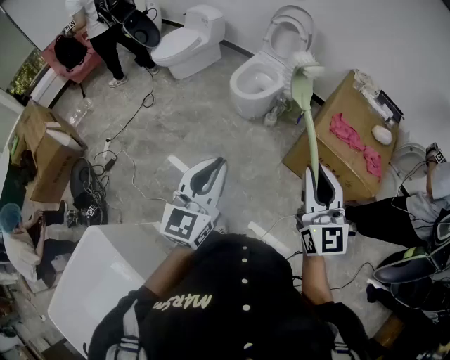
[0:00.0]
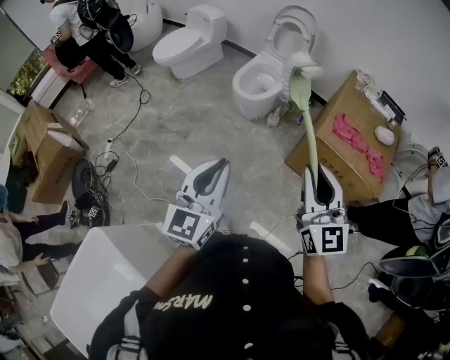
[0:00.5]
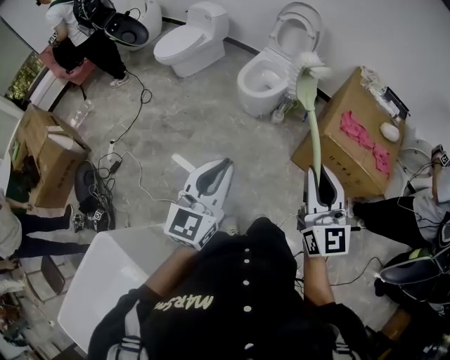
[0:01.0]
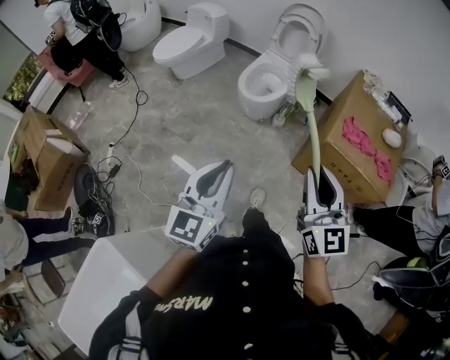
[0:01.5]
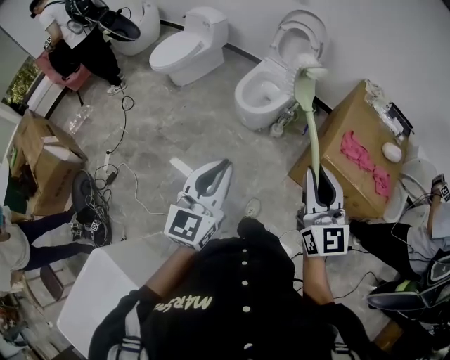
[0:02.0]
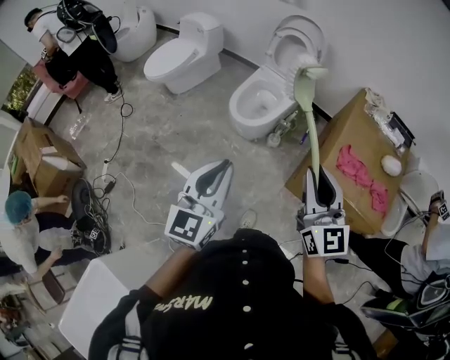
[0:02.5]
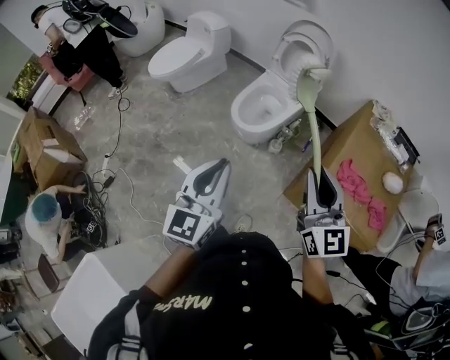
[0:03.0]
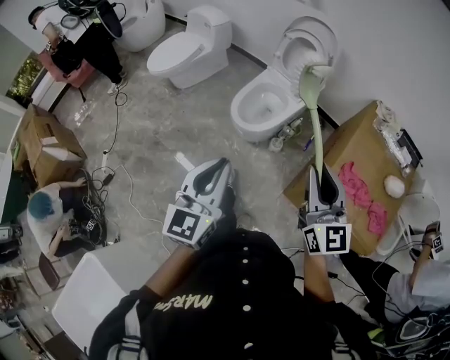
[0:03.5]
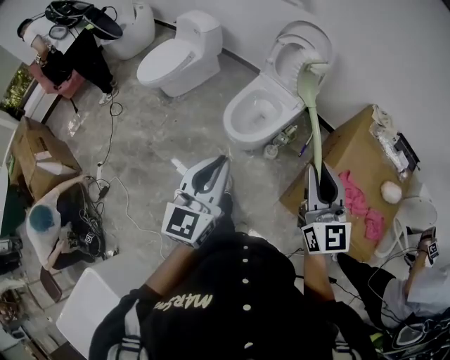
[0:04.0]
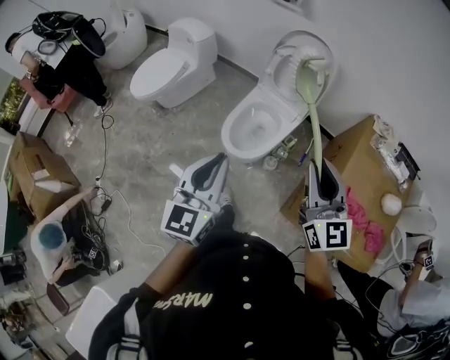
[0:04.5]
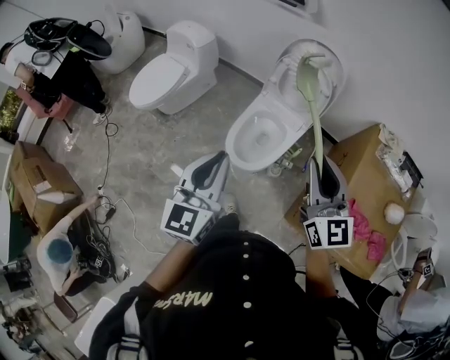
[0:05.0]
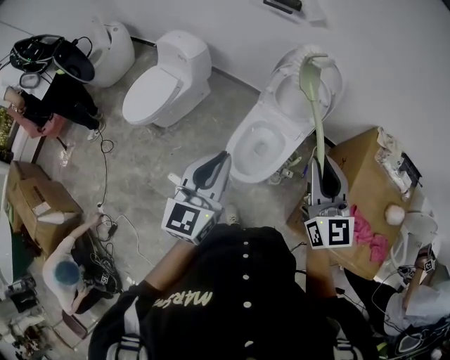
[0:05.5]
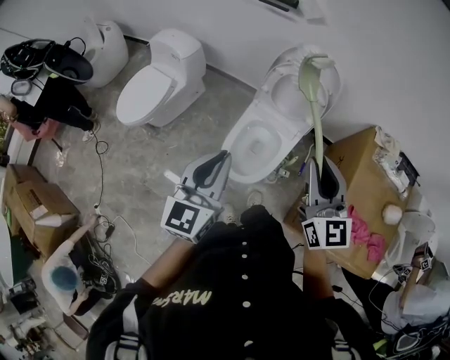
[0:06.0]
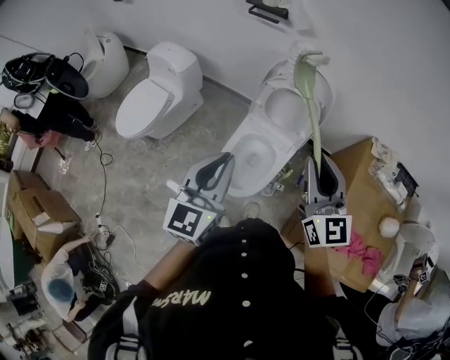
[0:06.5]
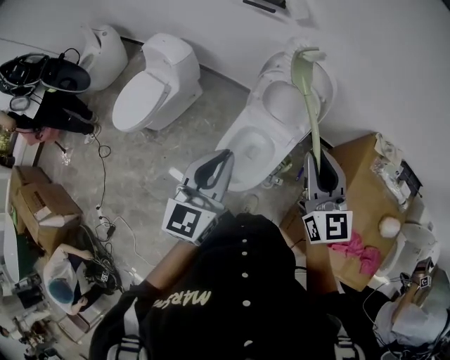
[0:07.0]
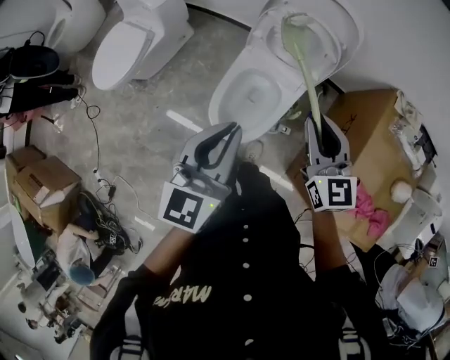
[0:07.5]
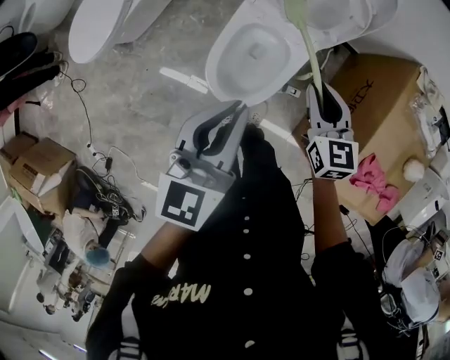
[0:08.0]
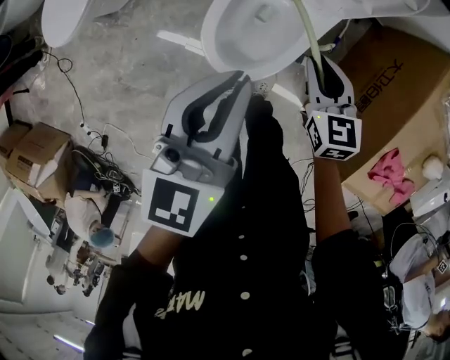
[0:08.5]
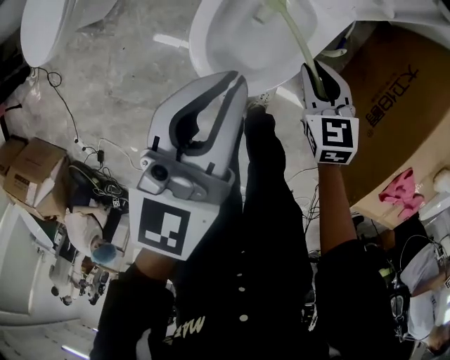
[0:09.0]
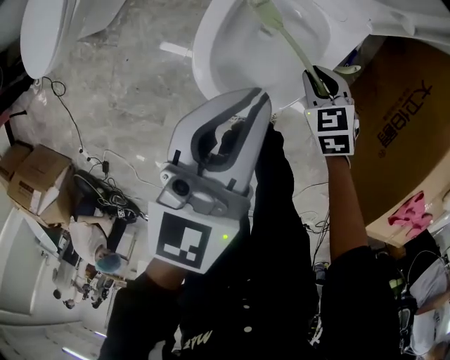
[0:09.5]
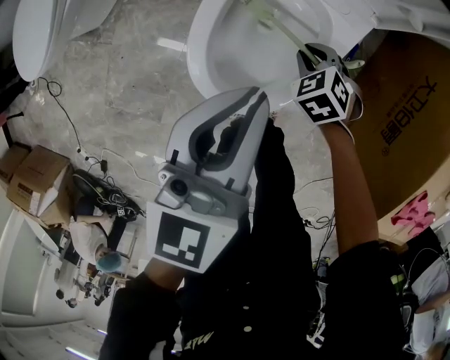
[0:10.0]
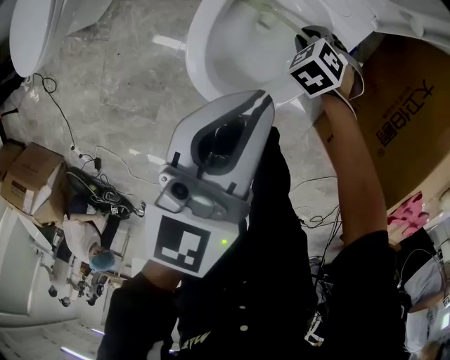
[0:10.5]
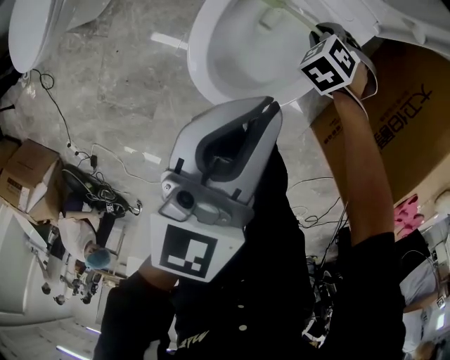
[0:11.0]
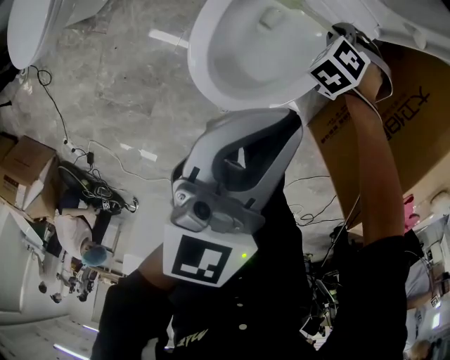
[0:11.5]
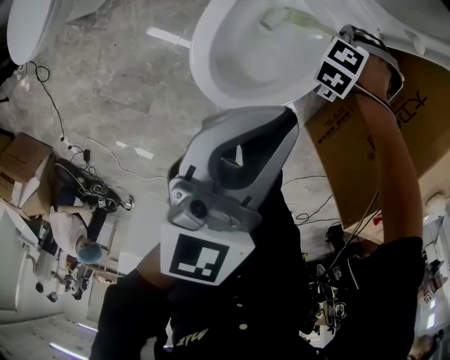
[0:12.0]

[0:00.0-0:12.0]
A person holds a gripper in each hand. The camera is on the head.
0:00.0 to 0:02.0: Both grippers travel together forward, some 15 cm.
0:02.0 to 0:04.0: The two grippers go some 25 cm forward.
0:04.0 to 0:06.0: The two grippers go some 30 cm forward.
0:06.0 to 0:08.0: The left gripper goes roughly 20 cm downward, forward and to the right; the right gripper goes roughly 35 cm downward and forward, and changes its angle by some 30 degrees.
0:08.0 to 0:10.0: The right gripper goes about 40 cm downward, and tips its fingers downward by approximately 40 degrees; the left gripper heads downward, covering some 30 cm.
0:10.0 to 0:12.0: The right gripper shifts by roughly 10 cm, and rolls counterclockwise, seen from behind, by roughly 40 degrees.

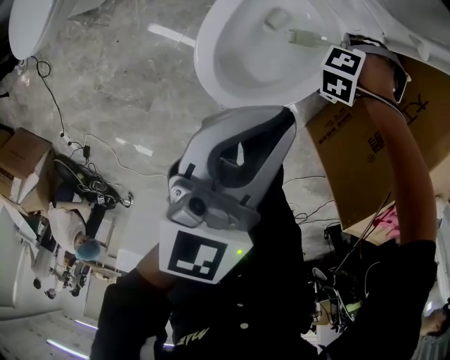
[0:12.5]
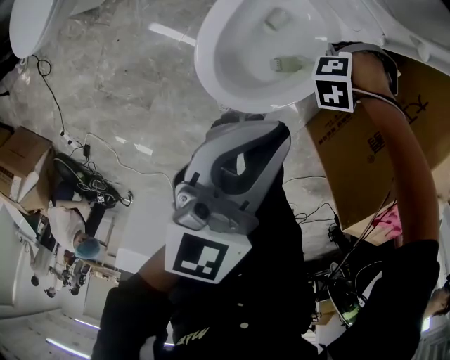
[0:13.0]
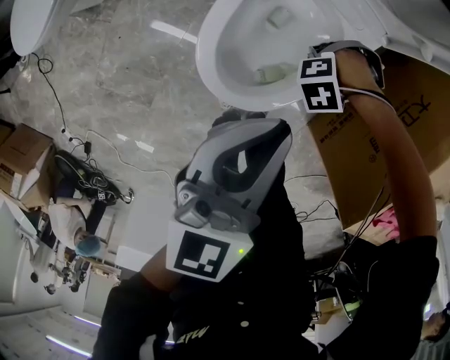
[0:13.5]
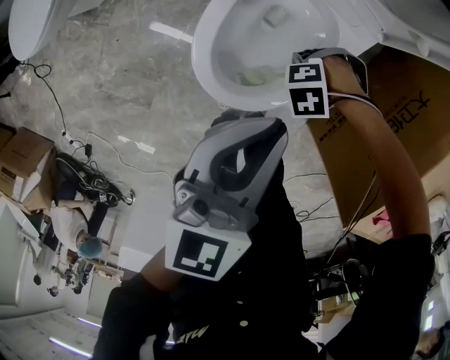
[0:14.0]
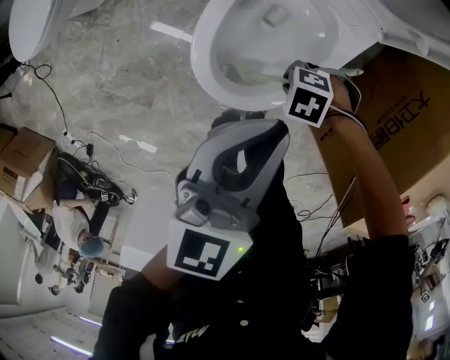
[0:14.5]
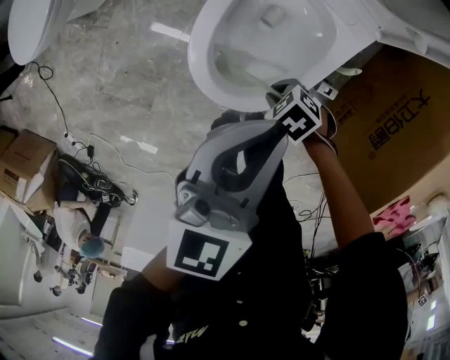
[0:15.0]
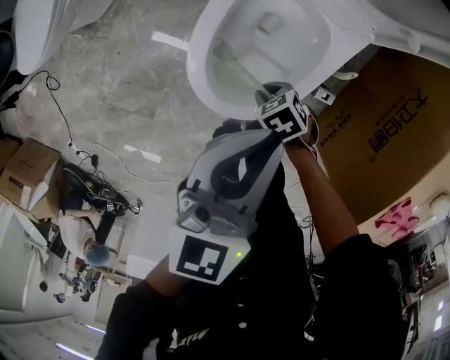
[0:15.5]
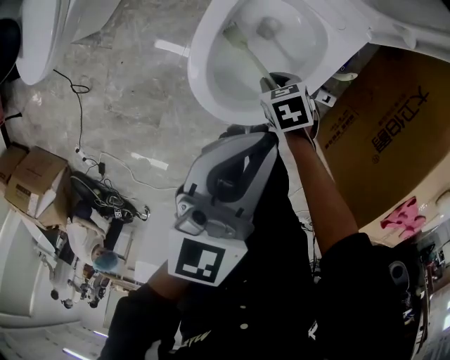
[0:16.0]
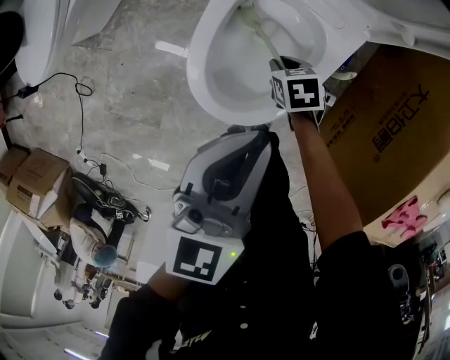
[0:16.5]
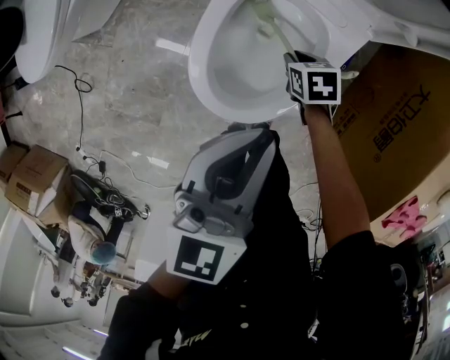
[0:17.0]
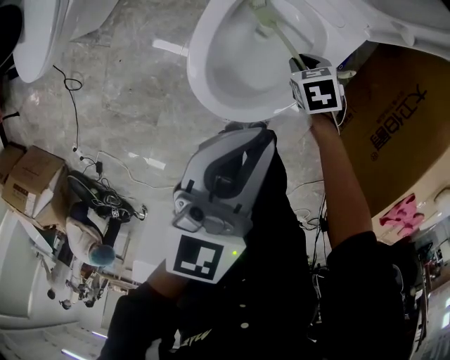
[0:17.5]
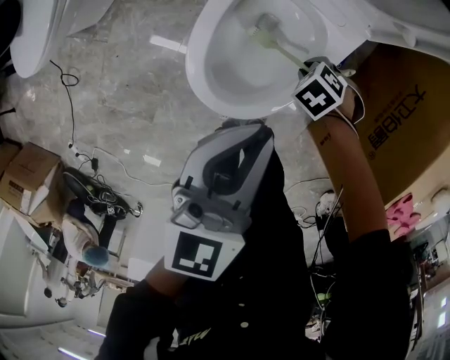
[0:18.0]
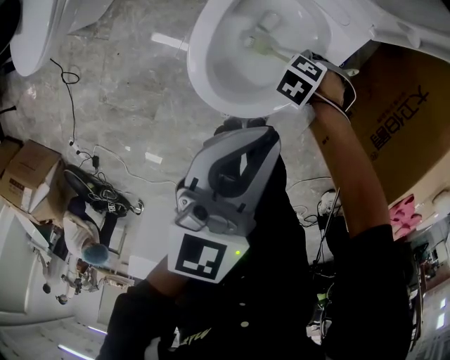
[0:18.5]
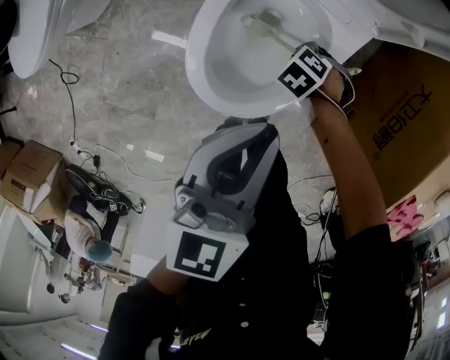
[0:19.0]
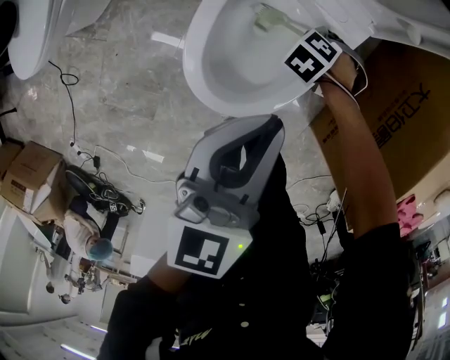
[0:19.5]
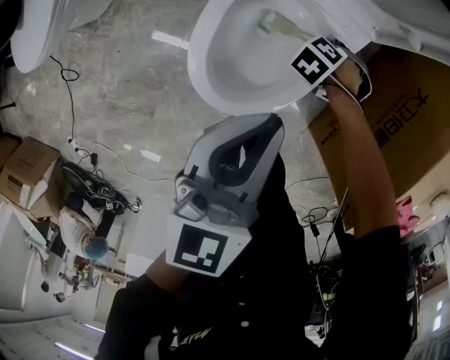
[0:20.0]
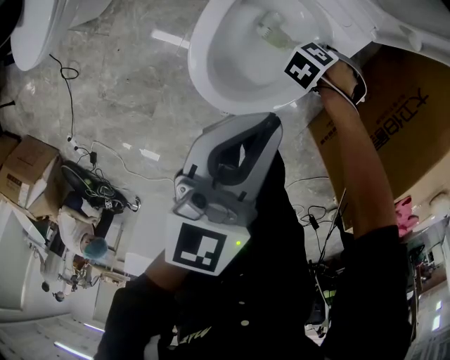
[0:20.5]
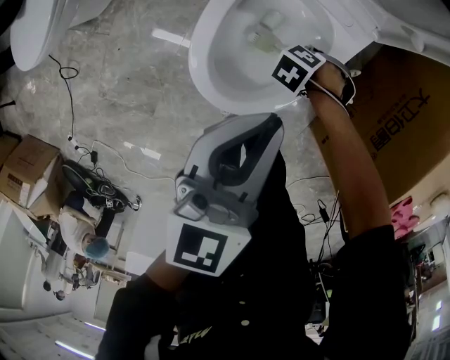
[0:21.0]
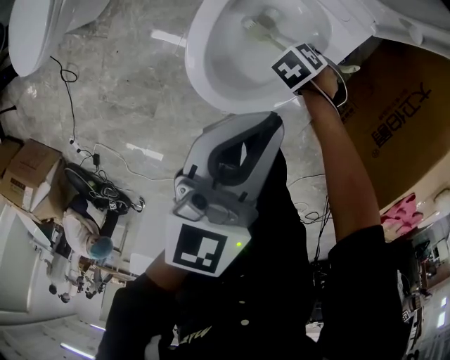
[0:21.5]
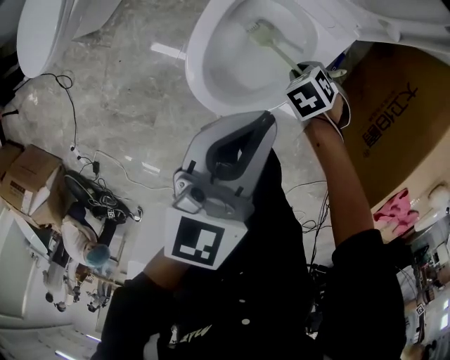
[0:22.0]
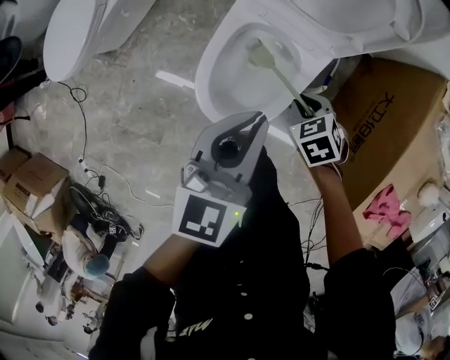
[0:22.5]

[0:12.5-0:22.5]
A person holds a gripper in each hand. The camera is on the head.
0:12.5 to 0:14.5: The right gripper shifts by roughly 20 cm, and turns by approximately 40 degrees.
0:14.5 to 0:16.5: The right gripper ends up approximately 10 cm from where it was, and rotates around the line of its fingers by roughly 60 degrees, clockwise from behind.
0:16.5 to 0:18.5: The right gripper changes place by approximately 5 cm, and twists some 50 degrees counterclockwise, seen from behind.
0:20.5 to 0:22.5: The left gripper travels upward by approximately 10 cm. Meanwhile the right gripper is displaced upward by about 20 cm, and swivels some 40 degrees.

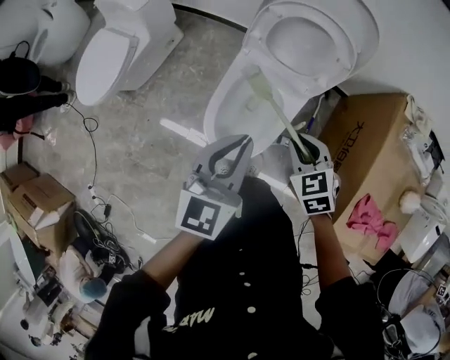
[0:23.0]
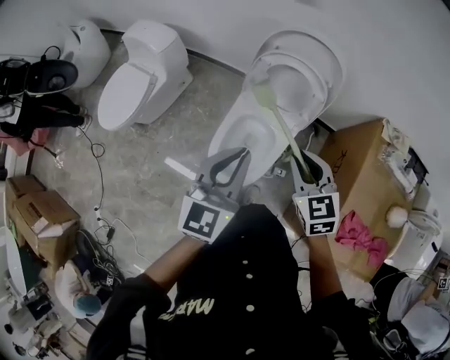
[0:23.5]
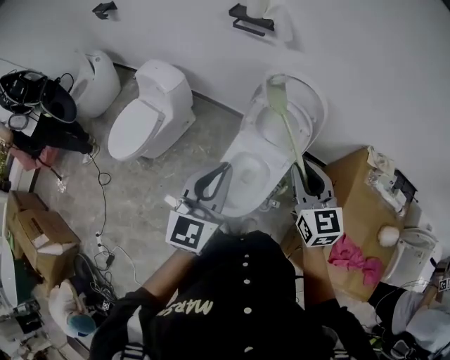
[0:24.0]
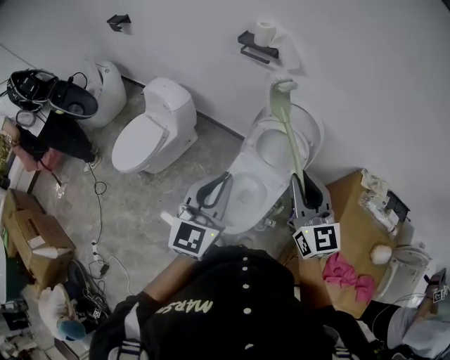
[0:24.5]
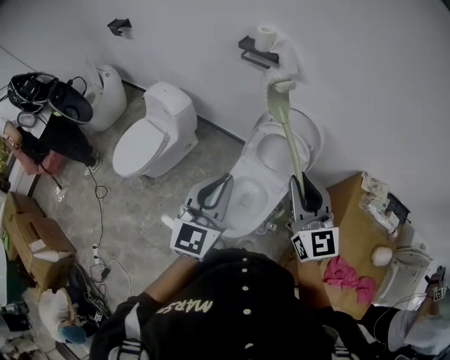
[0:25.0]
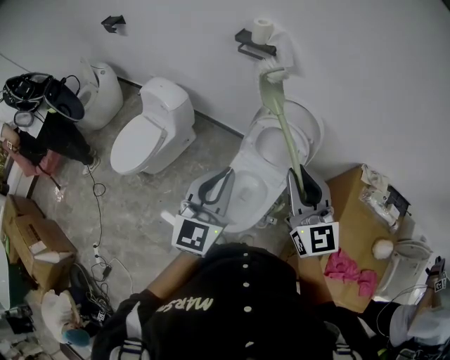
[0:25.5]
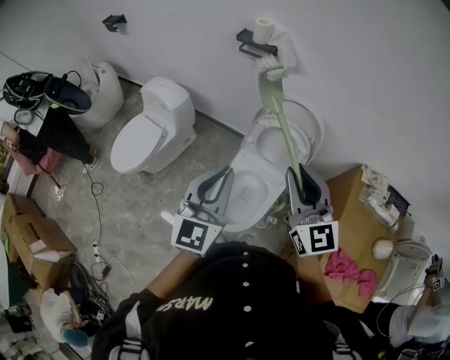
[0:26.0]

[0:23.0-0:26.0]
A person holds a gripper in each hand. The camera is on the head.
0:23.0 to 0:24.5: The two grippers go approximately 30 cm upward. The right gripper tilts its fingers some 50 degrees upward; the left gripper rotates approximately 20 degrees.
0:24.5 to 0:26.0: The grippers make only small movements.

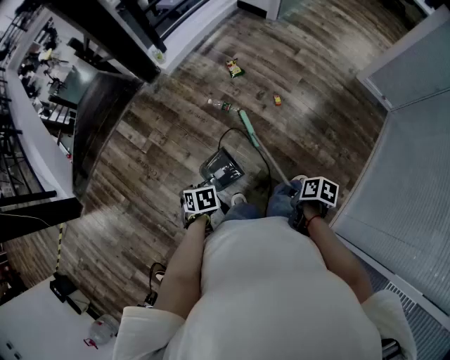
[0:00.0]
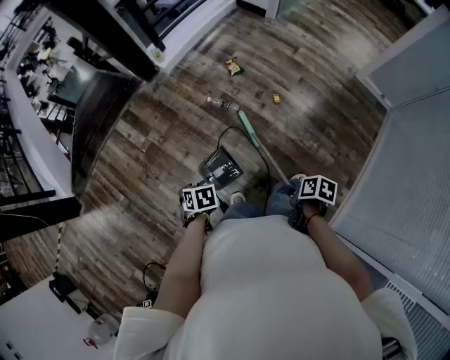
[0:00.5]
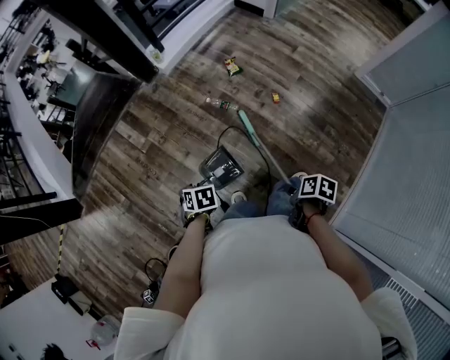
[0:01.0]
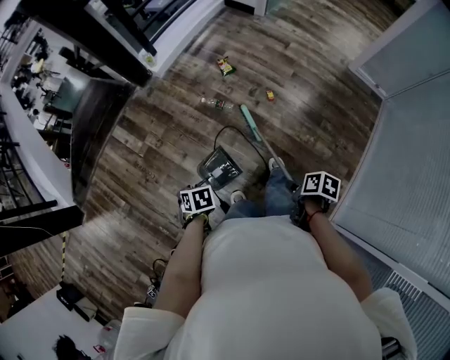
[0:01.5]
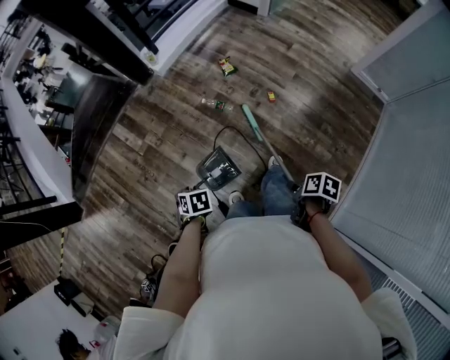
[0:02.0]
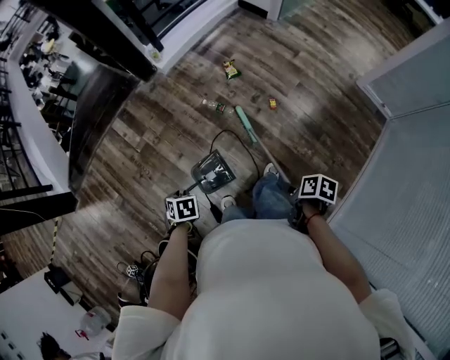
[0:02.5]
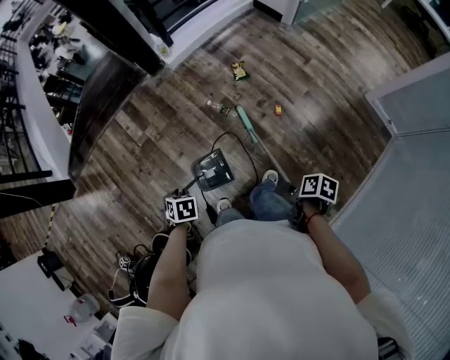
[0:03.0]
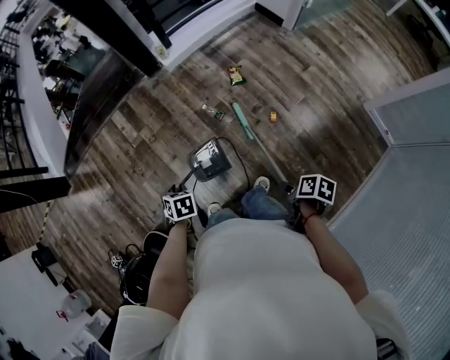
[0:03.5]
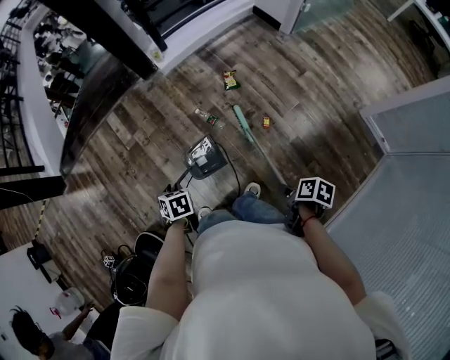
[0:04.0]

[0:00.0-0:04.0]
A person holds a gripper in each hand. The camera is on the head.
0:02.0 to 0:04.0: The left gripper changes place by about 15 cm.
